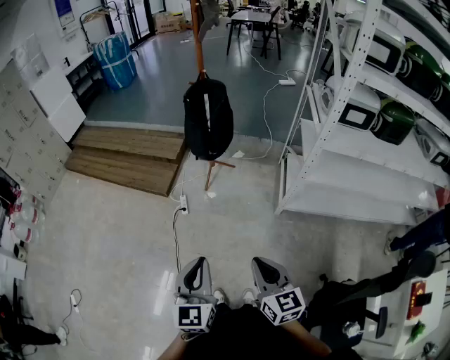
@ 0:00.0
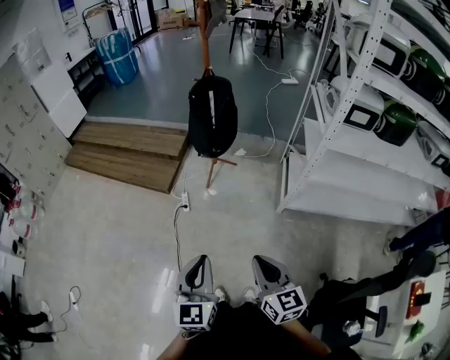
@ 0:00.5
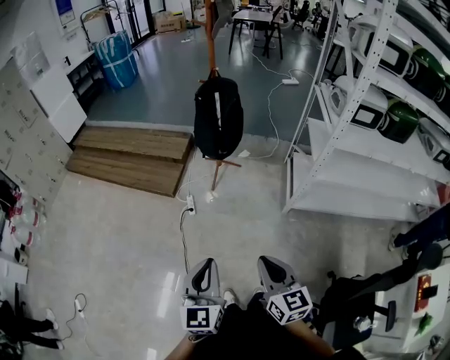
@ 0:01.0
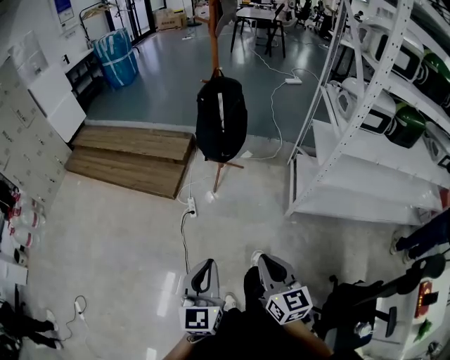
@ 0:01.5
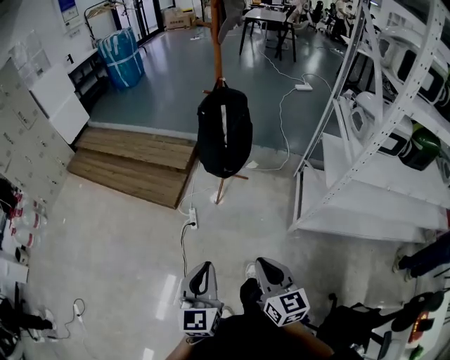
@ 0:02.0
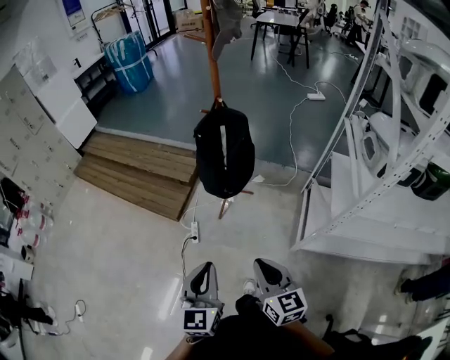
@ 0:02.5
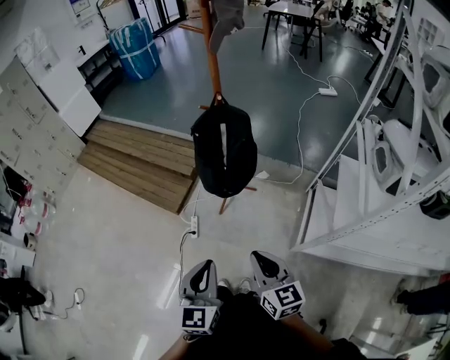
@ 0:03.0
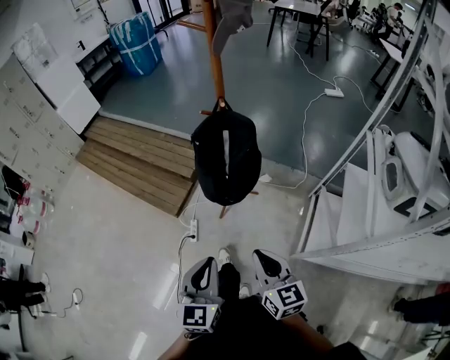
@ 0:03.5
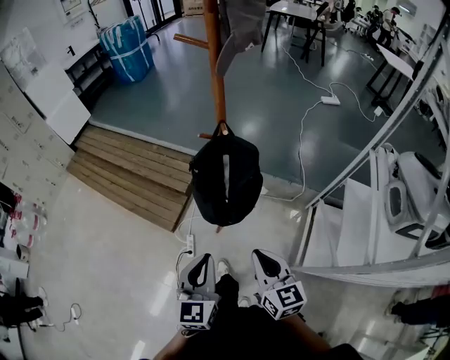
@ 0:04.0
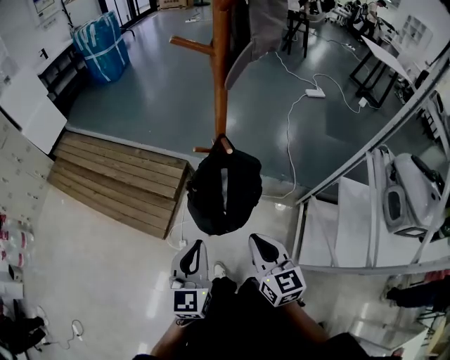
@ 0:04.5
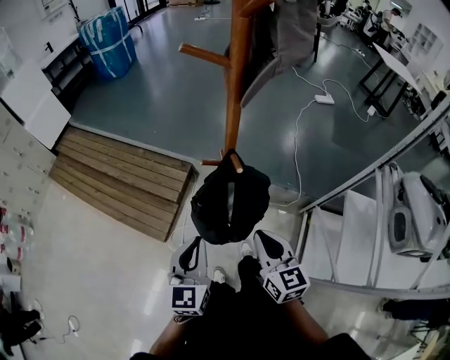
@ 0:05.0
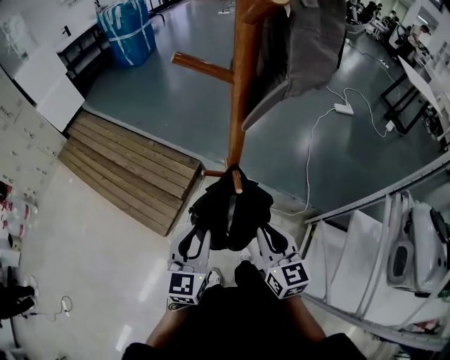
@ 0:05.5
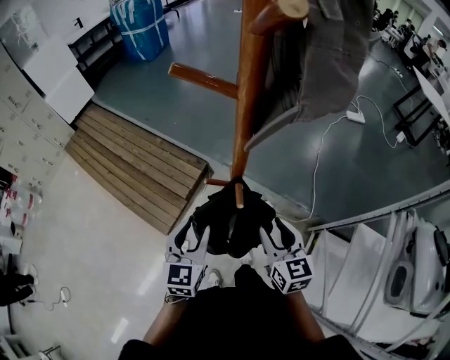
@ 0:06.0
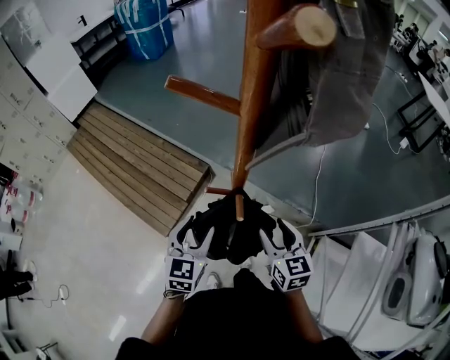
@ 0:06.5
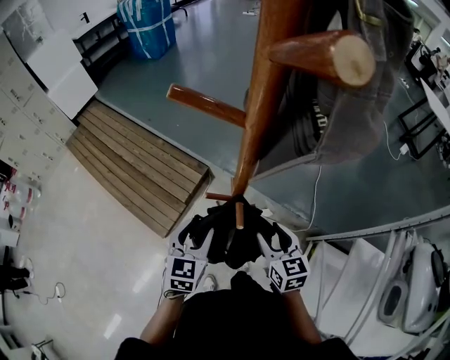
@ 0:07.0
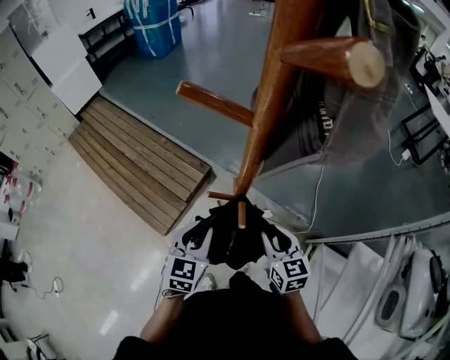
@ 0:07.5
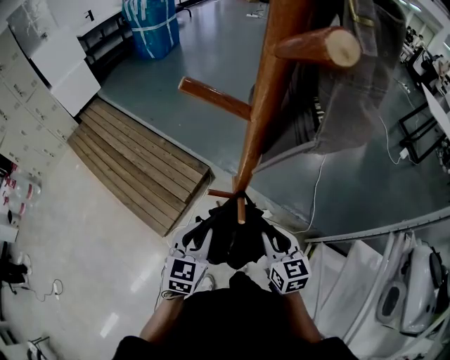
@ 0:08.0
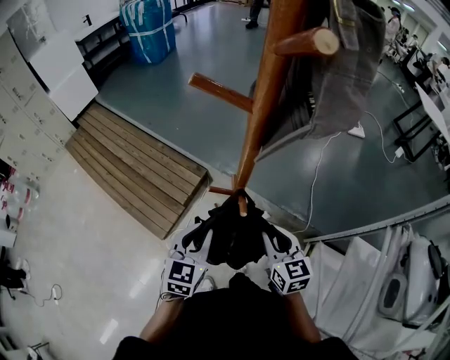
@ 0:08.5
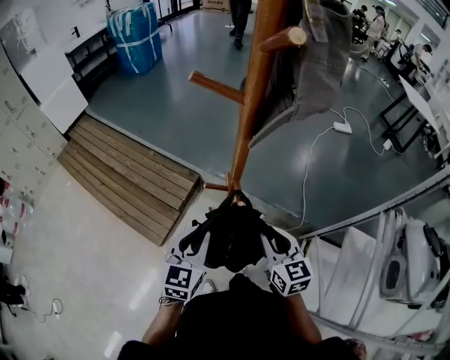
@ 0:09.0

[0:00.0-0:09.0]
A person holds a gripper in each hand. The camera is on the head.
0:00.0 to 0:02.0: Both grippers travel together forward, about 20 cm.
0:02.0 to 0:04.5: The pair of grippers is taken forward, approximately 50 cm.
0:04.5 to 0:07.0: Both grippers travel together forward, approximately 25 cm. The right gripper opens. The left gripper opens.
0:07.0 to 0:09.0: Both grippers move backward and upward, roughly 10 cm. The left gripper closes its fingers. Meanwhile the right gripper closes its fingers.

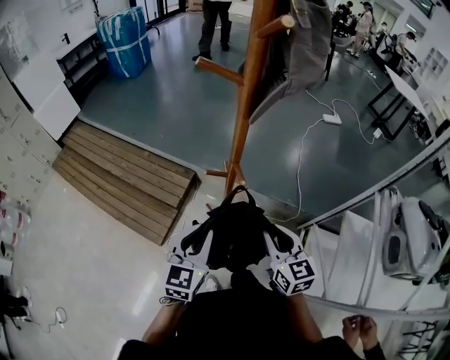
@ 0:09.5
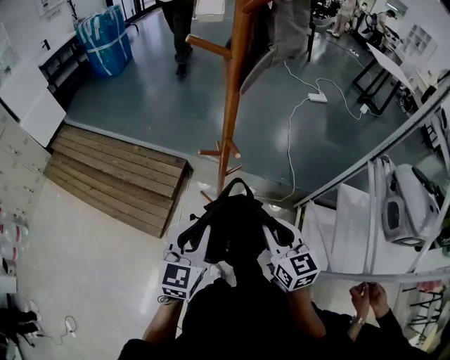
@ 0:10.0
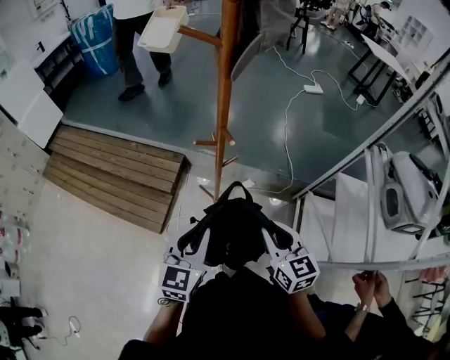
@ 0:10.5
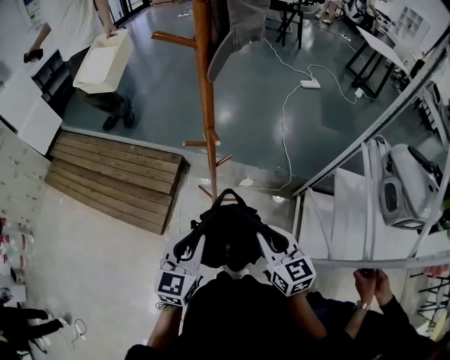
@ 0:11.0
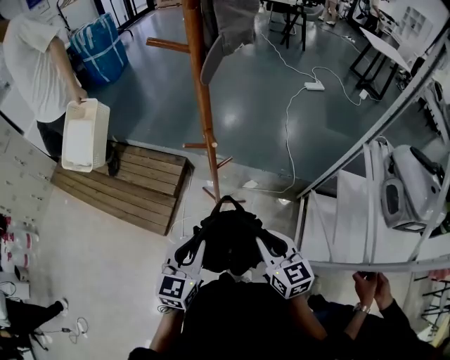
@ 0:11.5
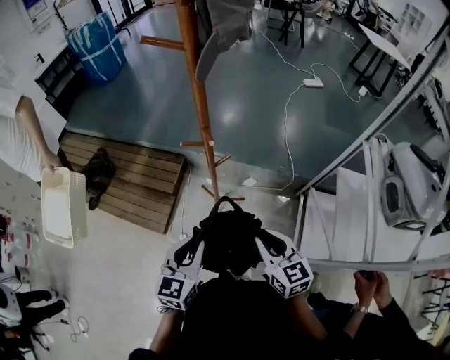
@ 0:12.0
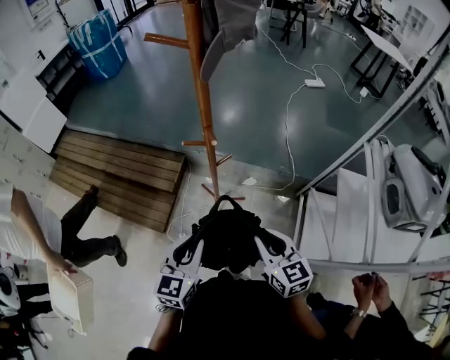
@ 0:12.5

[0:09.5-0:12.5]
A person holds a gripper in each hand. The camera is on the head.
0:09.5 to 0:11.0: The grippers both shift backward by roughly 10 cm.
0:11.0 to 0:12.5: There are only small adjustments of the grippers.

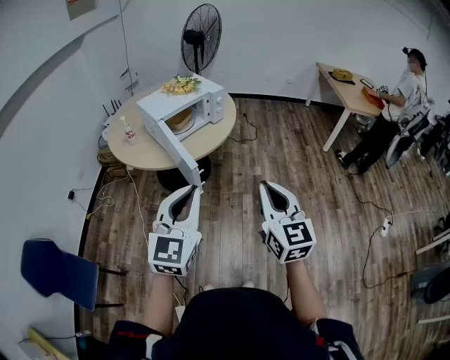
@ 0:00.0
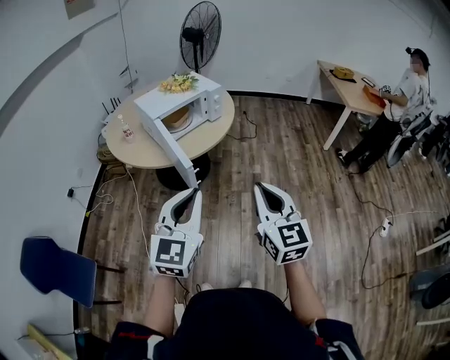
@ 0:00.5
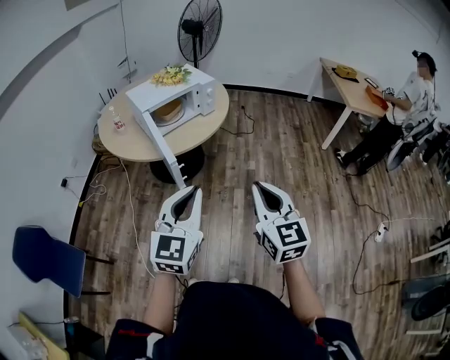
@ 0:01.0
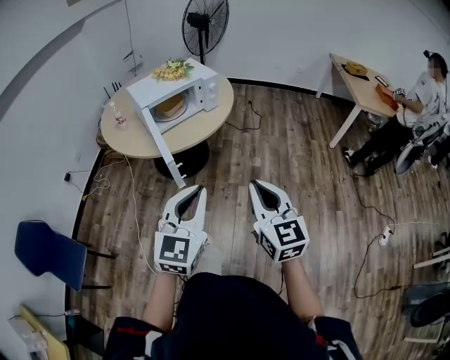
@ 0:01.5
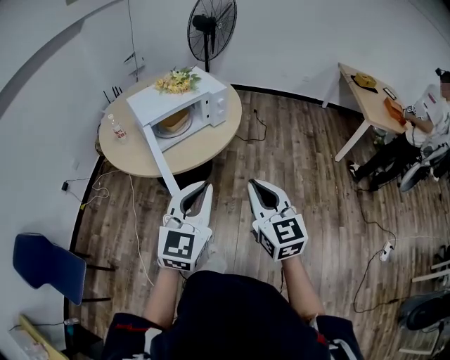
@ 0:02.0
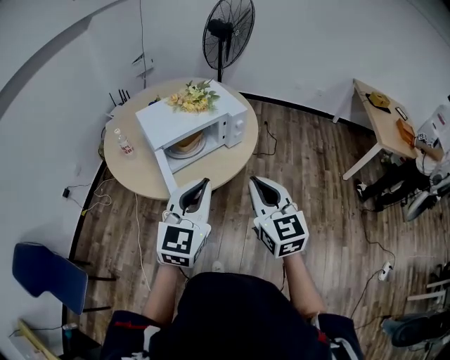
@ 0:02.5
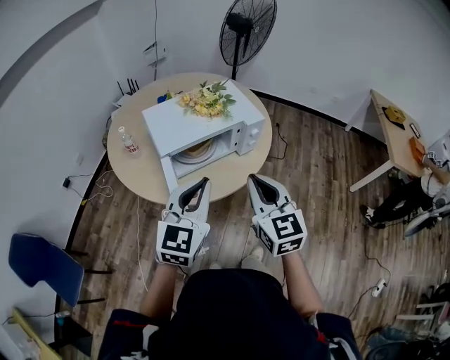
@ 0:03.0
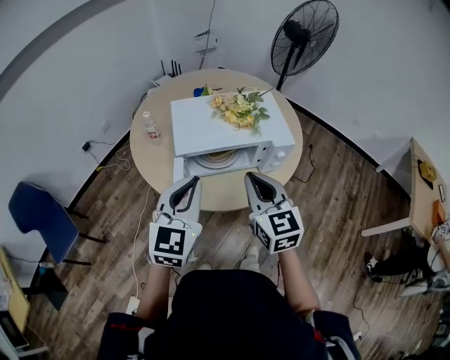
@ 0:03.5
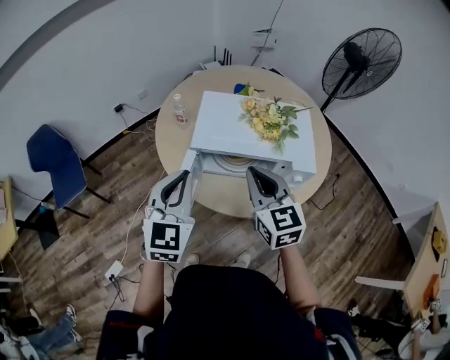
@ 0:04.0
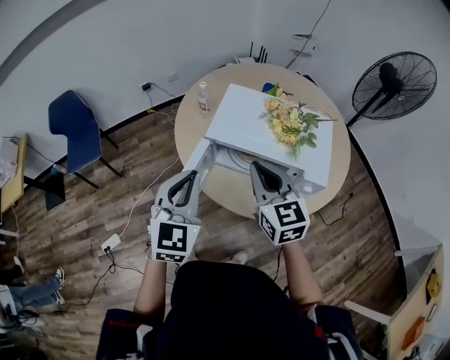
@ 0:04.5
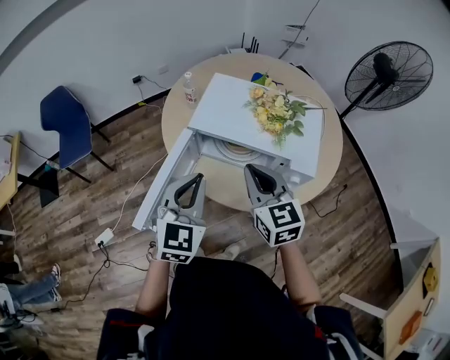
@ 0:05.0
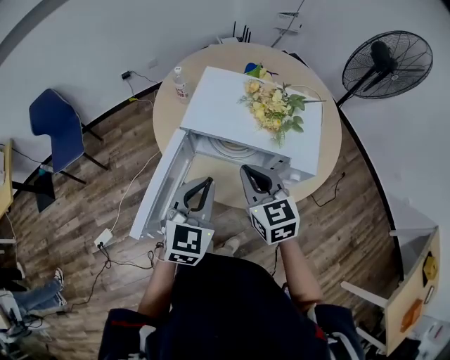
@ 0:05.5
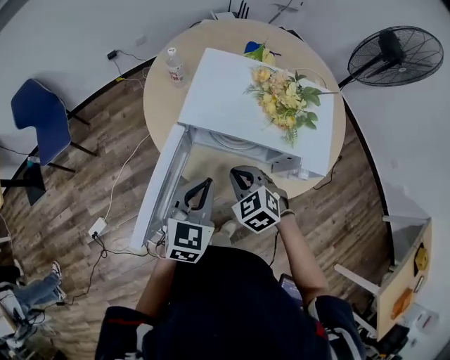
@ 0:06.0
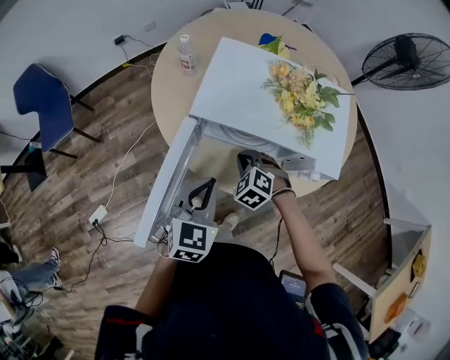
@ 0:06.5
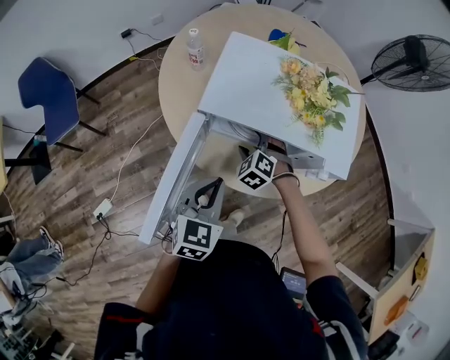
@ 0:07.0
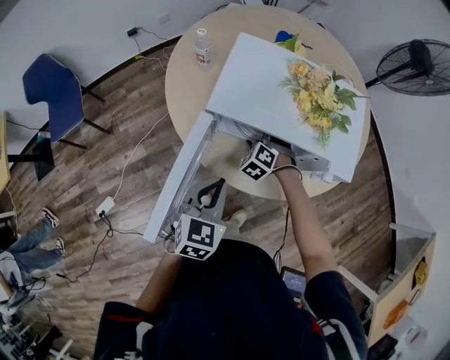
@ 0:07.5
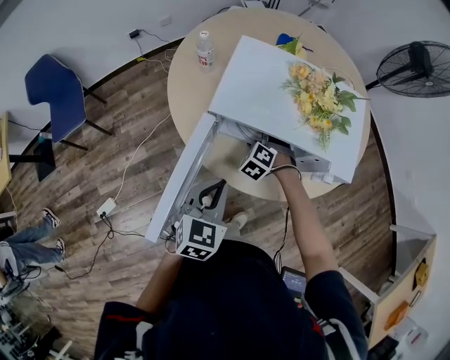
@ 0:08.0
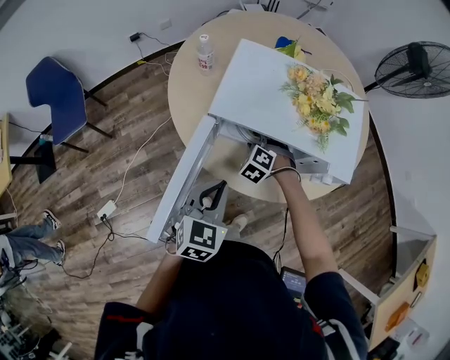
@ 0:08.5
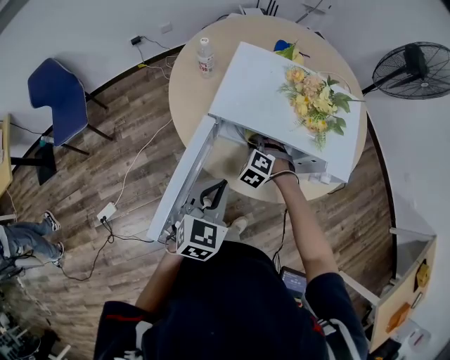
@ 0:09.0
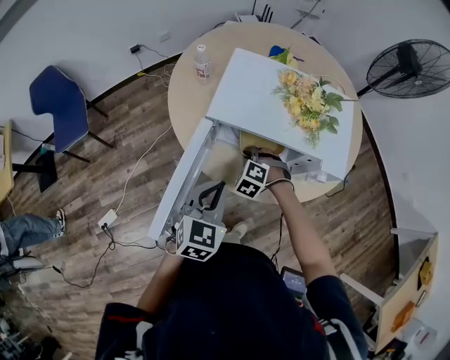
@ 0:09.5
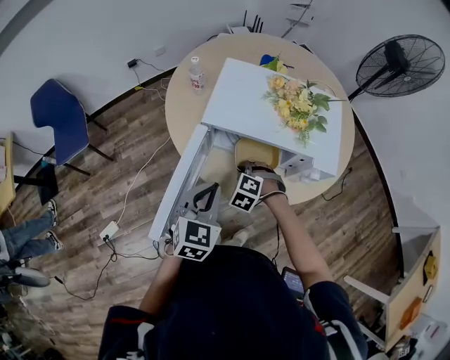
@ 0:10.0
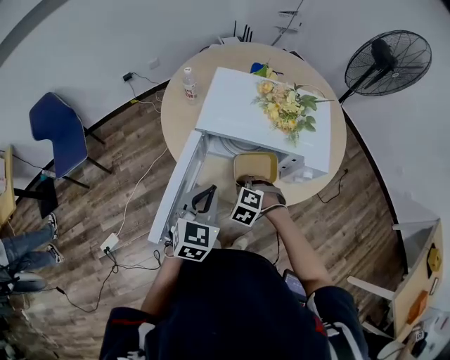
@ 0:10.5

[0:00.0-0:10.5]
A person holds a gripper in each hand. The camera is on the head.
0:00.0 to 0:02.0: The left gripper goes approximately 20 cm forward and to the right, while the right gripper is displaced forward by some 20 cm.
0:02.0 to 0:04.0: The left gripper moves some 35 cm, and swivels approximately 50 degrees. Meanwhile the right gripper moves roughly 40 cm, and changes its angle by some 40 degrees.
0:04.0 to 0:06.5: The right gripper shifts some 30 cm downward, and tilts its fingers some 40 degrees downward. Meanwhile the left gripper heads downward, covering some 20 cm, and rotates roughly 20 degrees.
0:06.5 to 0:08.5: The right gripper travels forward by roughly 5 cm, and opens.
0:08.5 to 0:10.5: The right gripper goes about 15 cm backward, and closes its fingers.

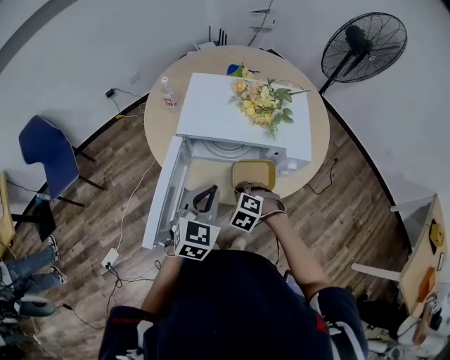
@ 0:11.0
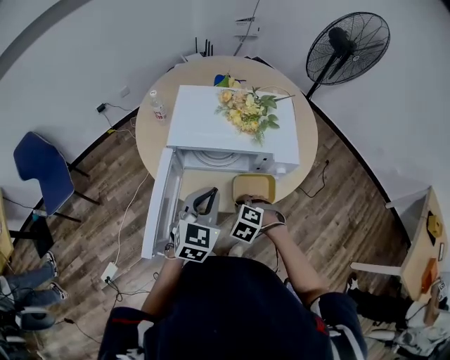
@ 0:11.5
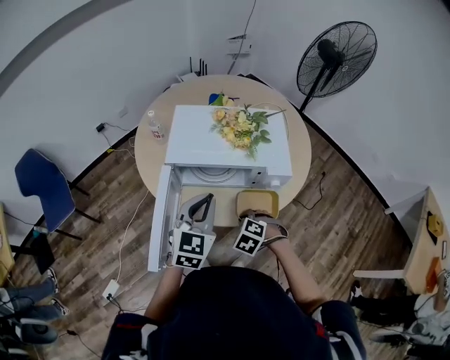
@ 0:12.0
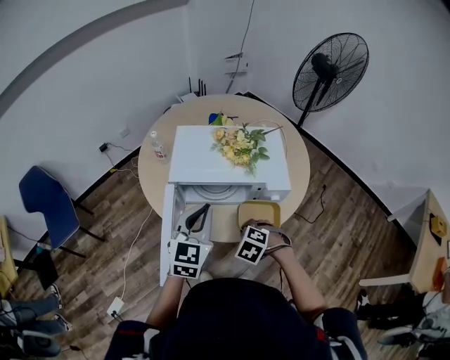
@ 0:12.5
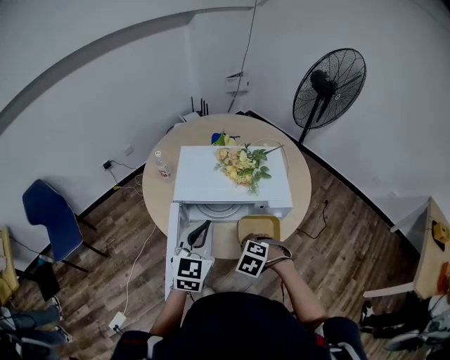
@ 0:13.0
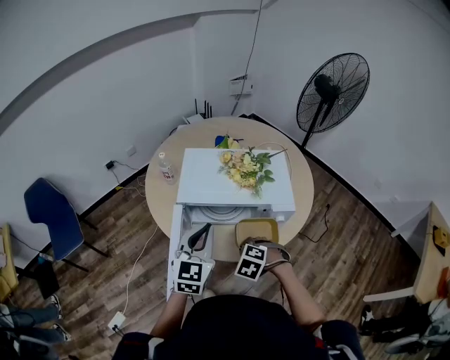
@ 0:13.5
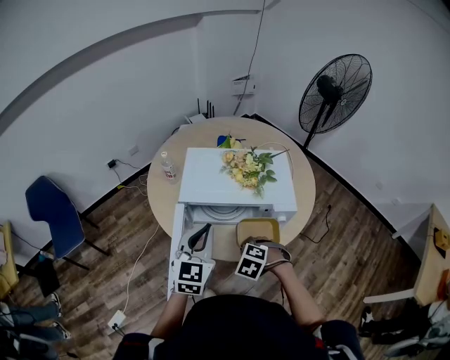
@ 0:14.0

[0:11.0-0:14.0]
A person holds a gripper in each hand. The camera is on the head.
0:11.0 to 0:12.5: Both grippers move upward, approximately 5 cm.
0:12.5 to 0:14.0: The grippers move only a little.

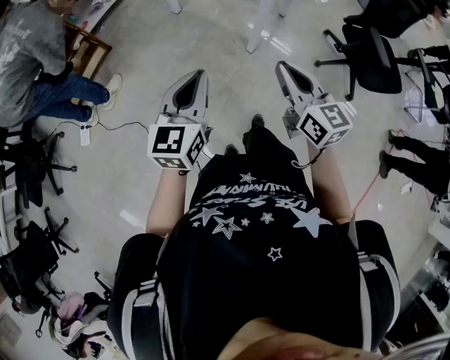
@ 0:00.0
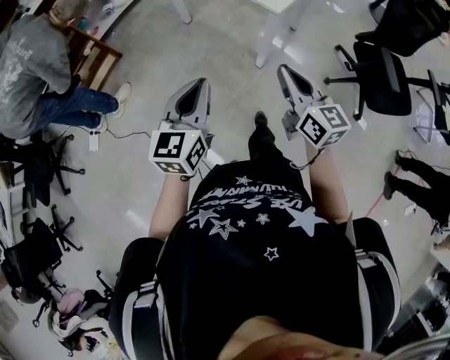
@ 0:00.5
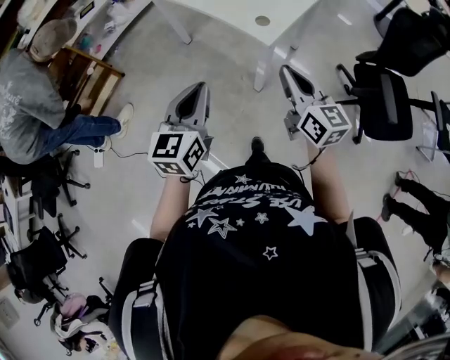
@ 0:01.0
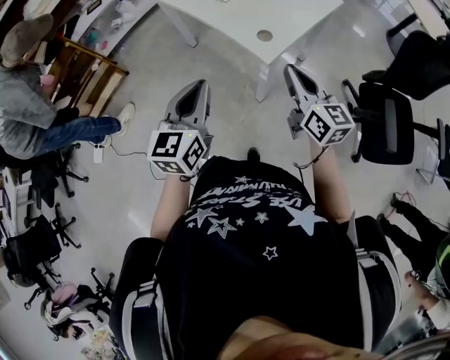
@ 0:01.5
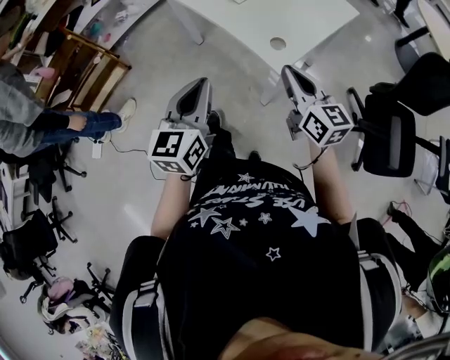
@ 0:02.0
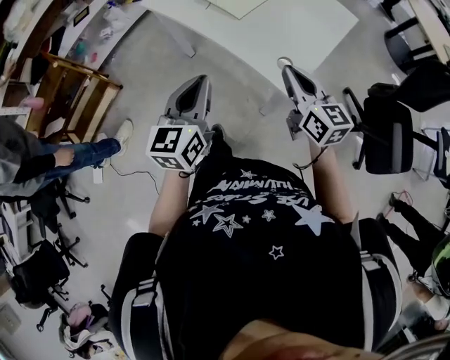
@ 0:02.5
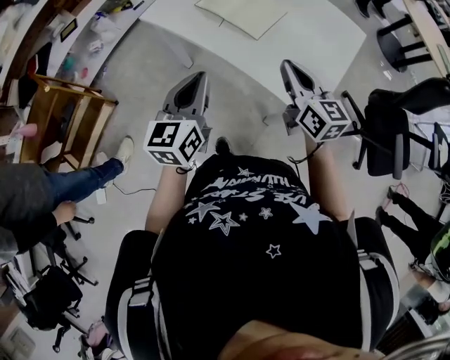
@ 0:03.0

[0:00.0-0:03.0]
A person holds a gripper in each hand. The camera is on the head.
0:00.0 to 0:01.5: Both grippers travel together forward and to the right, about 35 cm.
0:01.5 to 0:03.0: Both grippers travel together forward and to the left, some 35 cm.
